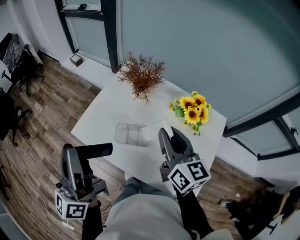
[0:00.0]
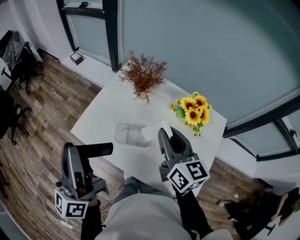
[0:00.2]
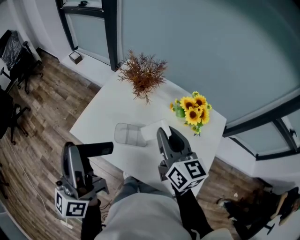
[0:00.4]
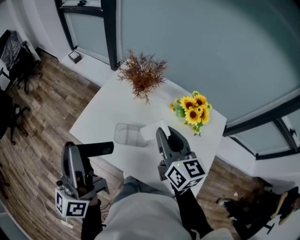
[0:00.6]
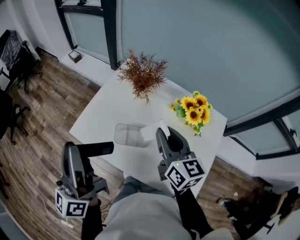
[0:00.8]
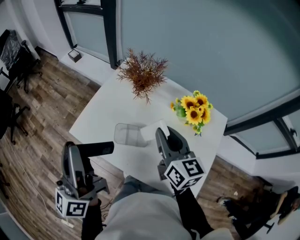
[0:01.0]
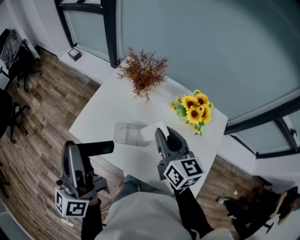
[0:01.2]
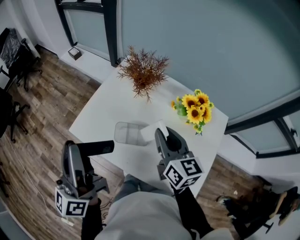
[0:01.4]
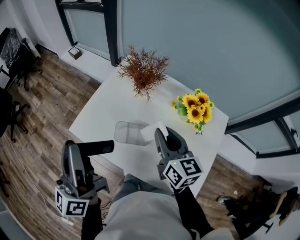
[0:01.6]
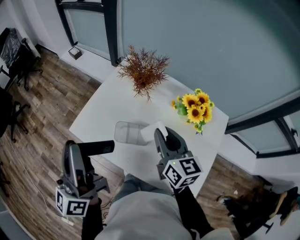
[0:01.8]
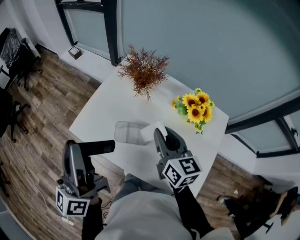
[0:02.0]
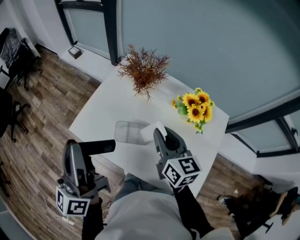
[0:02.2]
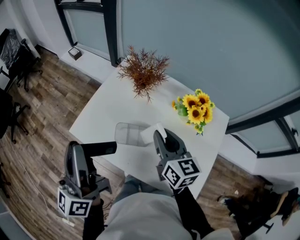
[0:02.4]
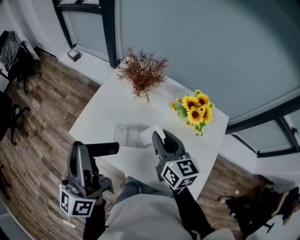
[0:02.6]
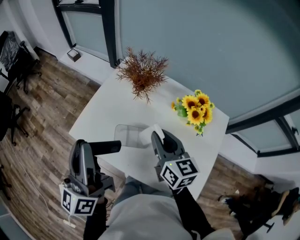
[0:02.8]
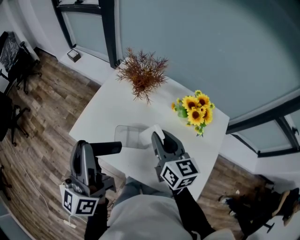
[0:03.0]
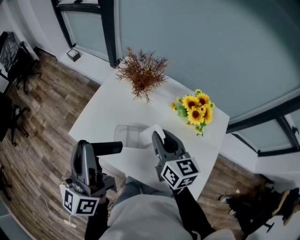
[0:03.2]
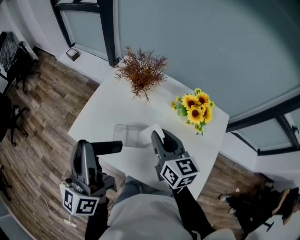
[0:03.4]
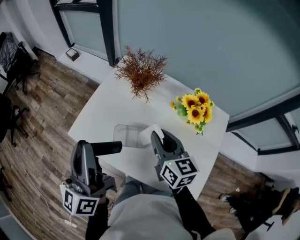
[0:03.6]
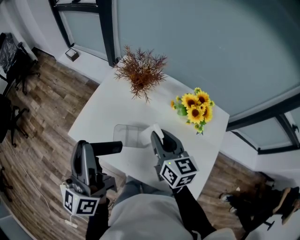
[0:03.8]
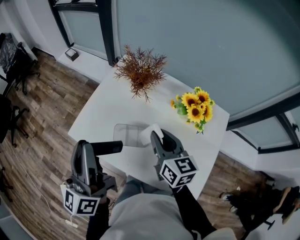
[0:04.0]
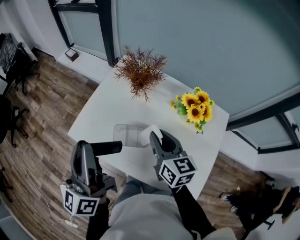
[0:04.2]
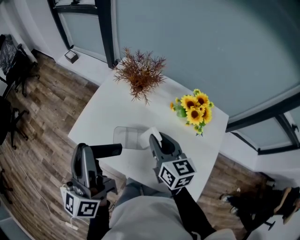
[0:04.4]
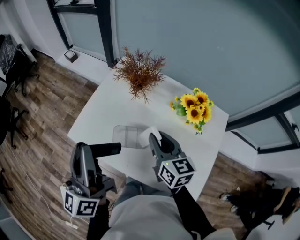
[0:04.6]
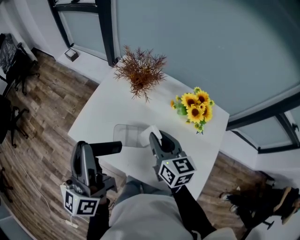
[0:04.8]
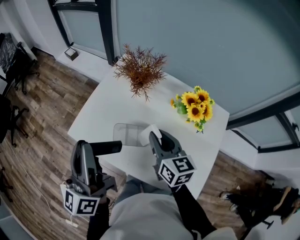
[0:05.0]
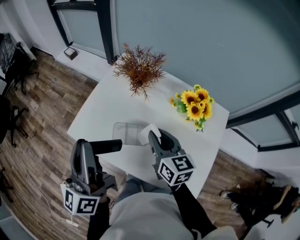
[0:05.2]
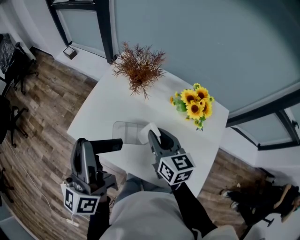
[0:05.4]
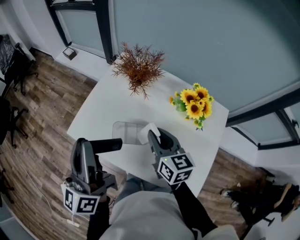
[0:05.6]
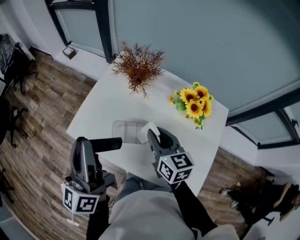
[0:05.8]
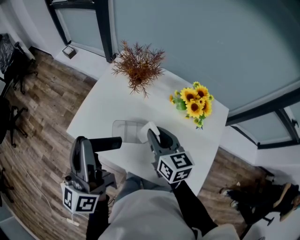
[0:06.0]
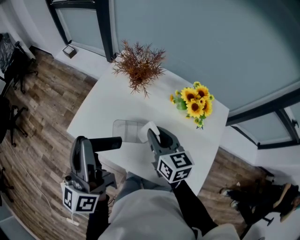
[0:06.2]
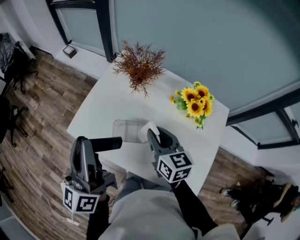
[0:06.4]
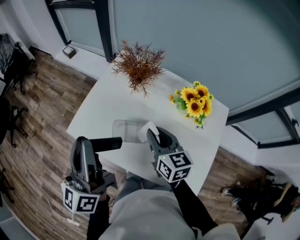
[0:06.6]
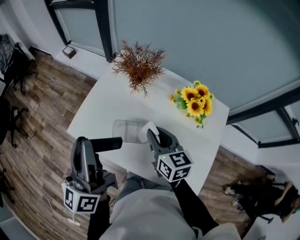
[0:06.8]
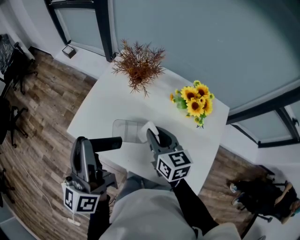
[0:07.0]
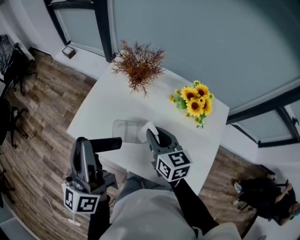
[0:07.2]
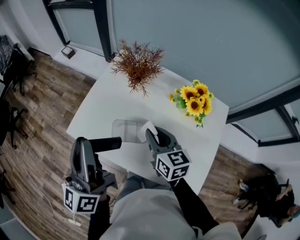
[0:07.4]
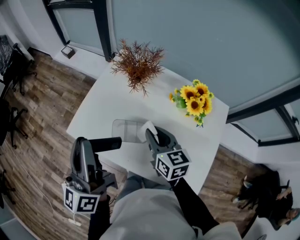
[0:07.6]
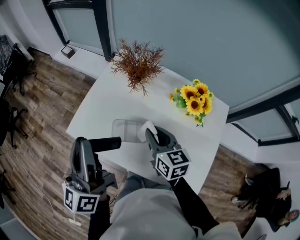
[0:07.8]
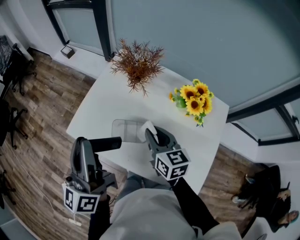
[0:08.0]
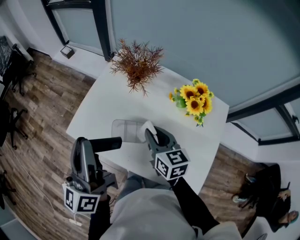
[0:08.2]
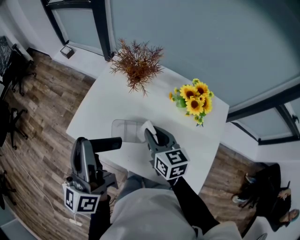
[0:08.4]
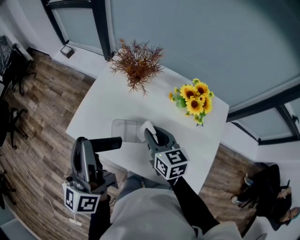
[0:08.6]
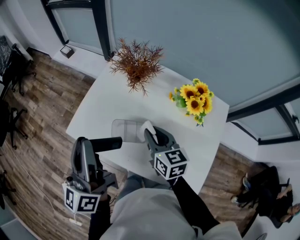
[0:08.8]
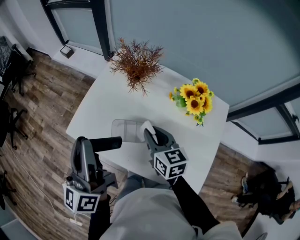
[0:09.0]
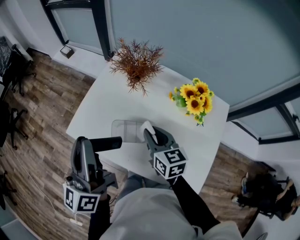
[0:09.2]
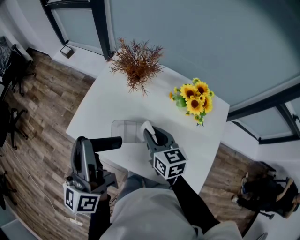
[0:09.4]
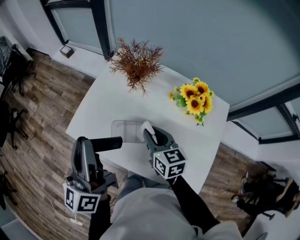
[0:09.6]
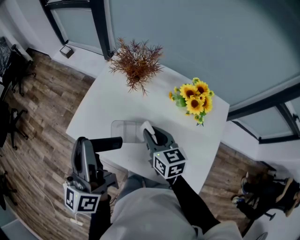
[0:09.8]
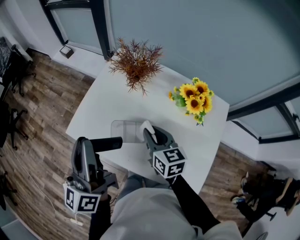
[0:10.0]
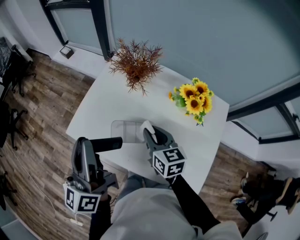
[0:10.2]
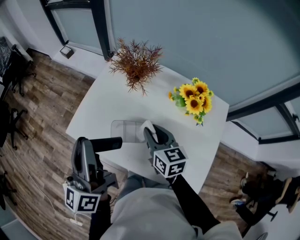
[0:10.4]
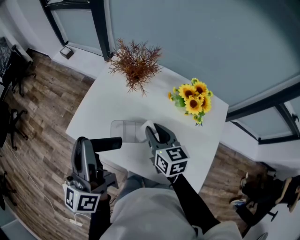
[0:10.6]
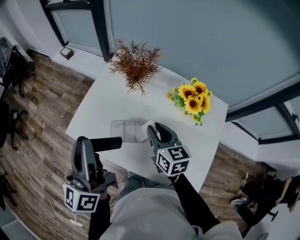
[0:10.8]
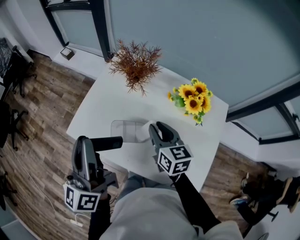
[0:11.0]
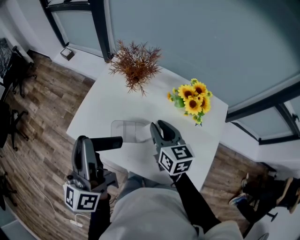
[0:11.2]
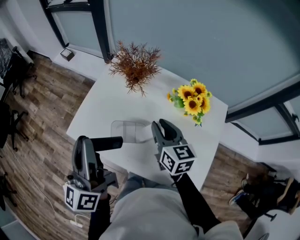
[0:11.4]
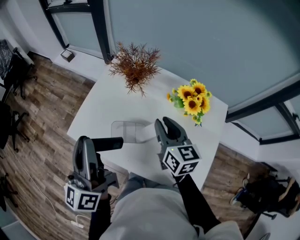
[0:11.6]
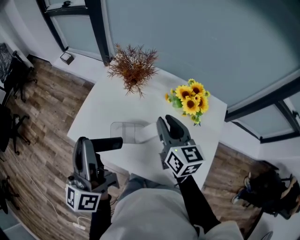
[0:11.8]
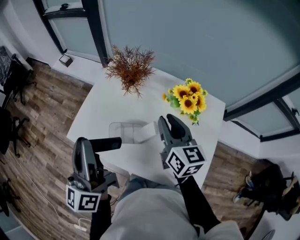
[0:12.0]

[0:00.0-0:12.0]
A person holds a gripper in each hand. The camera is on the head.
0:00.0 to 0:01.6: The right gripper heads downward, covering approximately 5 cm.
0:01.6 to 0:06.0: There are only small adjustments of the grippers.
0:06.0 to 0:07.6: The grippers move only a little.
0:07.6 to 0:09.0: Both grippers stay about where they are.
0:09.0 to 0:10.4: Both grippers stay about where they are.
0:10.4 to 0:12.0: The right gripper is displaced upward and to the right by roughly 10 cm.

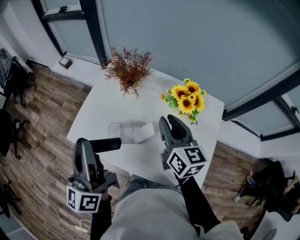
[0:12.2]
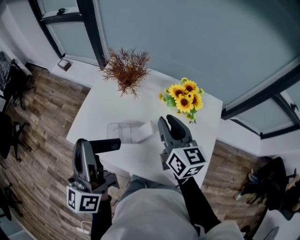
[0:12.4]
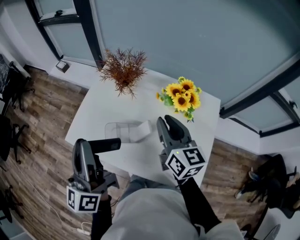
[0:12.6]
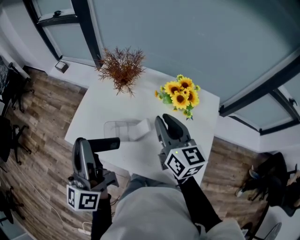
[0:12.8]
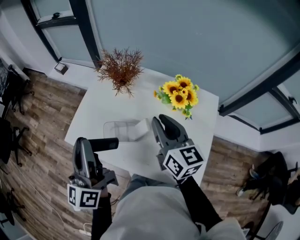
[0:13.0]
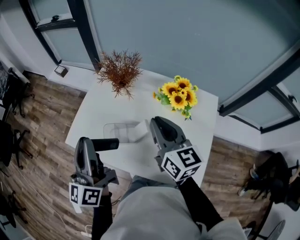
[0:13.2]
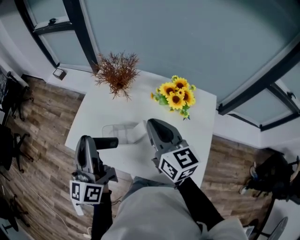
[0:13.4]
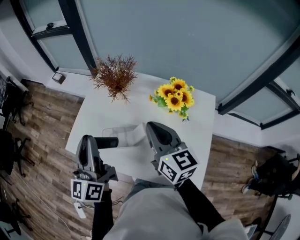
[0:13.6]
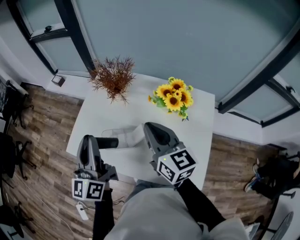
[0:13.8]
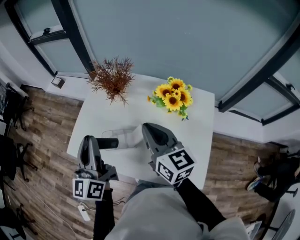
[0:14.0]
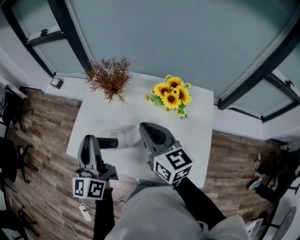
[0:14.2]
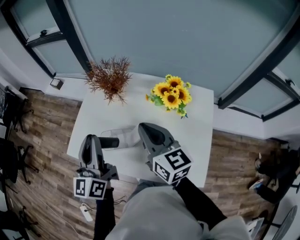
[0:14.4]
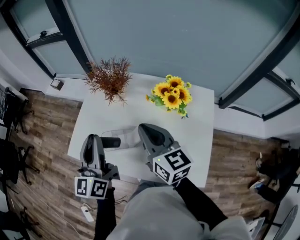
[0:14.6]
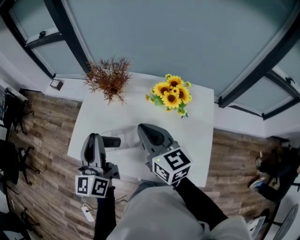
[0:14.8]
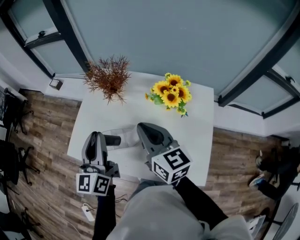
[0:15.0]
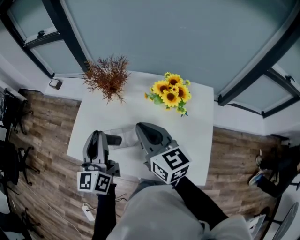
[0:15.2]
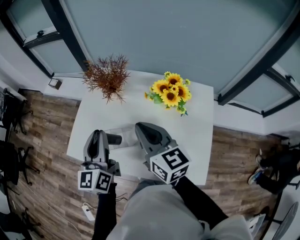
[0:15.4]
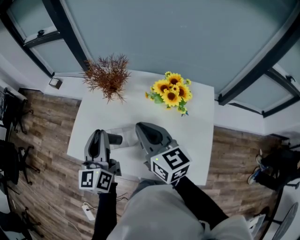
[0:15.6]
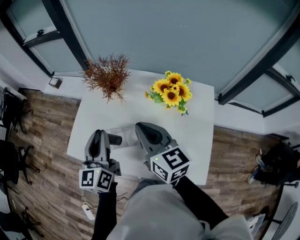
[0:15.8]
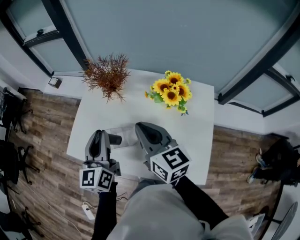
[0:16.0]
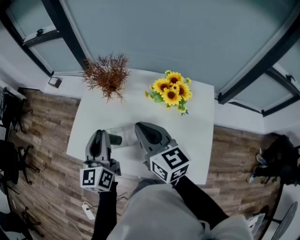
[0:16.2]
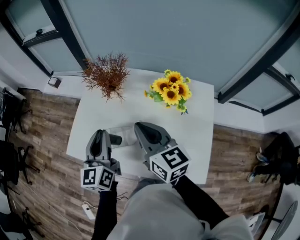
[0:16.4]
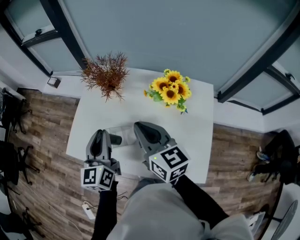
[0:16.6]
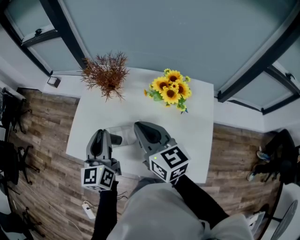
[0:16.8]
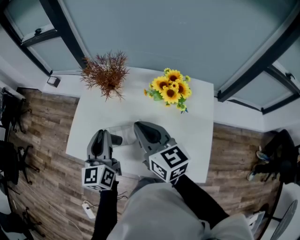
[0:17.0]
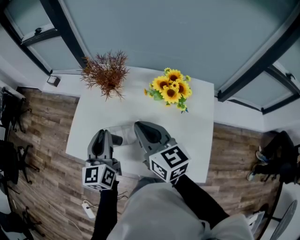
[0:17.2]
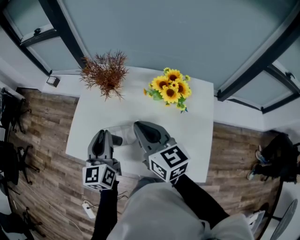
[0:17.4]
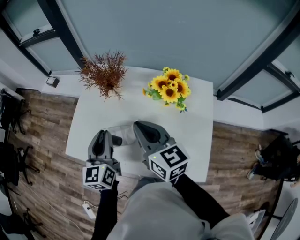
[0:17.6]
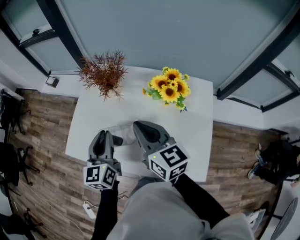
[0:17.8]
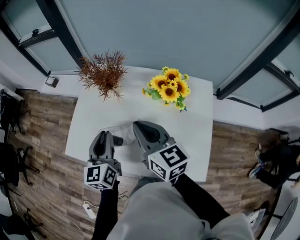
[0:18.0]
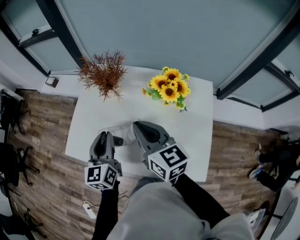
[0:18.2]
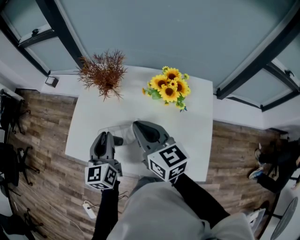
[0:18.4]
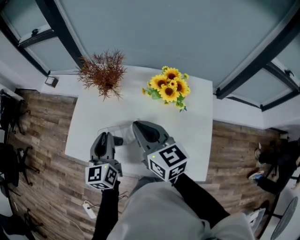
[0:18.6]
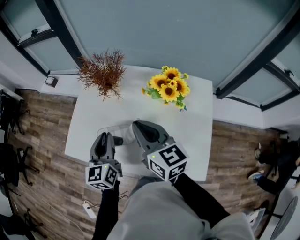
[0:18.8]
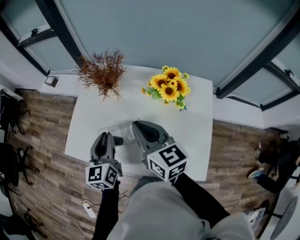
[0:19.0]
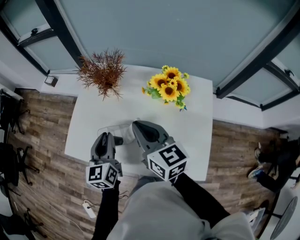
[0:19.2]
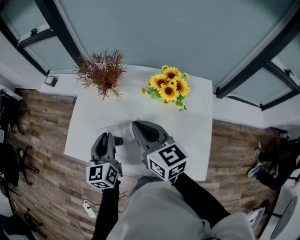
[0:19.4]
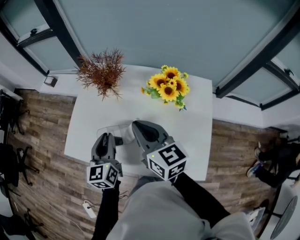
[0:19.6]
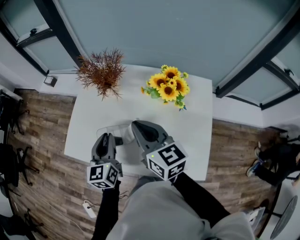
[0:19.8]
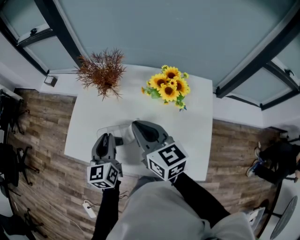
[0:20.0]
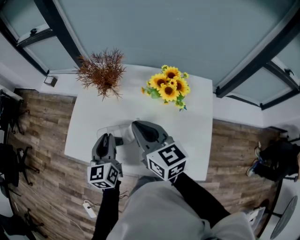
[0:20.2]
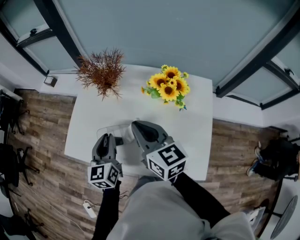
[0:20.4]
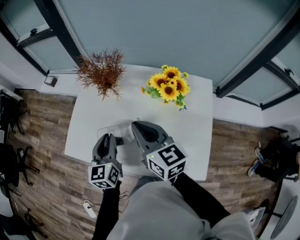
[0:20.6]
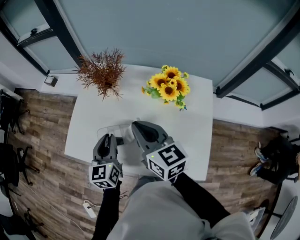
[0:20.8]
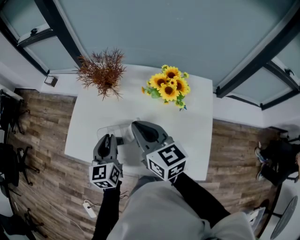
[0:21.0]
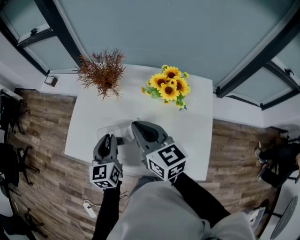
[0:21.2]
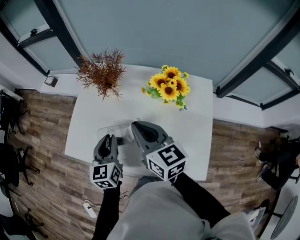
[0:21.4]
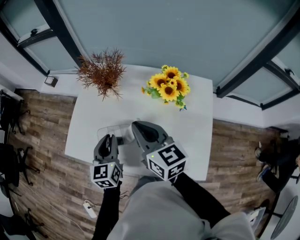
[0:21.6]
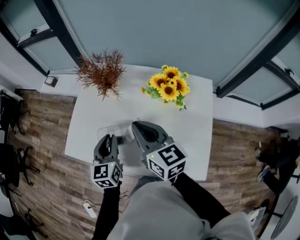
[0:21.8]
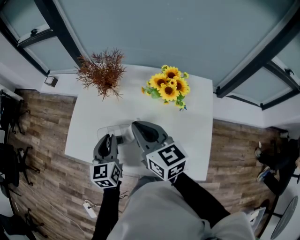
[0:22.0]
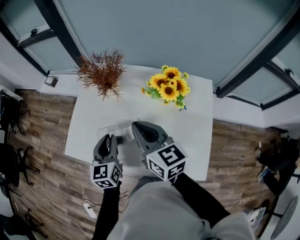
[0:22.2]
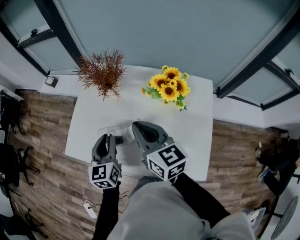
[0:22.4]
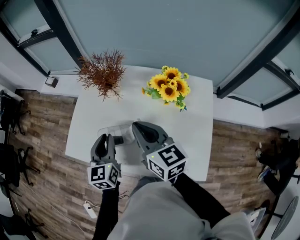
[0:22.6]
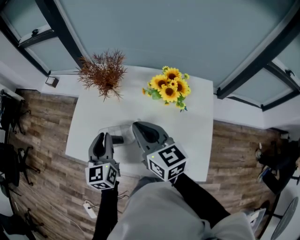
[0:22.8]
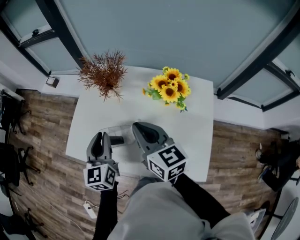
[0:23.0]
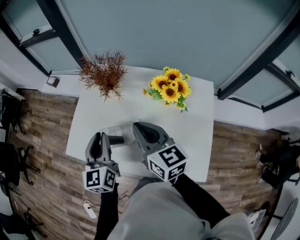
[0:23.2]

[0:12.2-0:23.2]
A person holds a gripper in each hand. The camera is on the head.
0:12.2 to 0:13.8: The left gripper changes place by roughly 5 cm.
0:13.8 to 0:15.4: The left gripper shifts by approximately 5 cm.
0:15.4 to 0:17.0: The grippers move only a little.
0:17.0 to 0:20.0: The grippers make only small movements.
0:20.0 to 0:21.6: The grippers make only small movements.
0:21.6 to 0:23.2: The left gripper heads upward, covering roughly 5 cm.

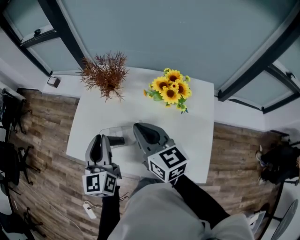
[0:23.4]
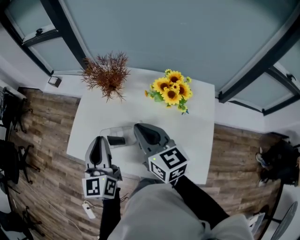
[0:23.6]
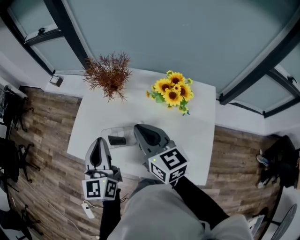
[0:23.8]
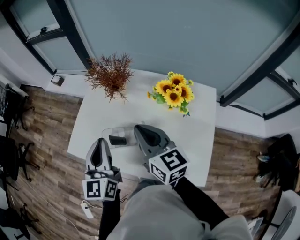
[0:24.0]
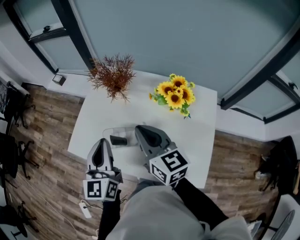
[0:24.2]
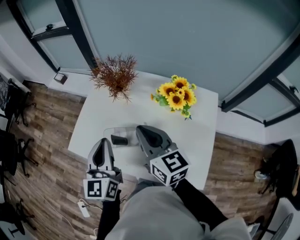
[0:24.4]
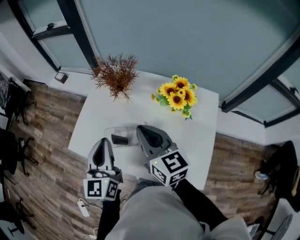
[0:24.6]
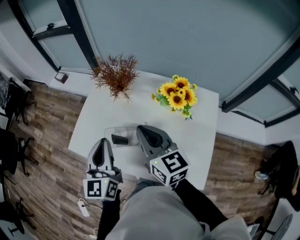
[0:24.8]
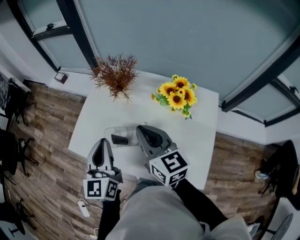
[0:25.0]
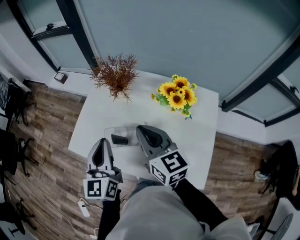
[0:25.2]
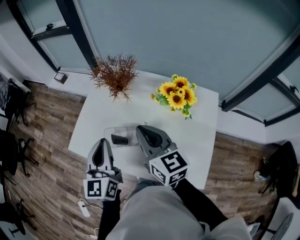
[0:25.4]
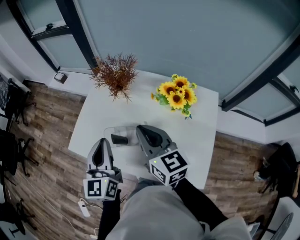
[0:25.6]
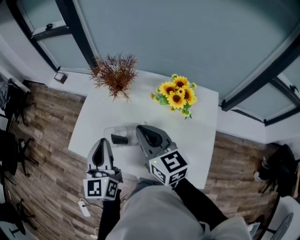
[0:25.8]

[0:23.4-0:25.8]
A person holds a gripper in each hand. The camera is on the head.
0:23.4 to 0:24.6: The grippers move only a little.
0:24.6 to 0:25.8: Both grippers stay about where they are.
